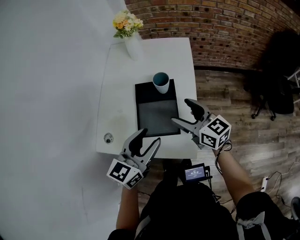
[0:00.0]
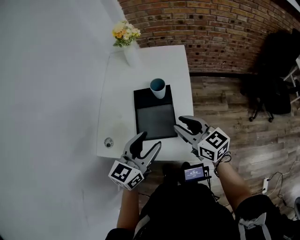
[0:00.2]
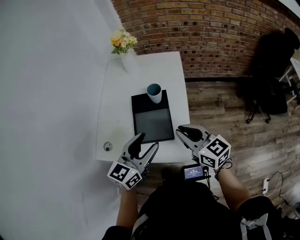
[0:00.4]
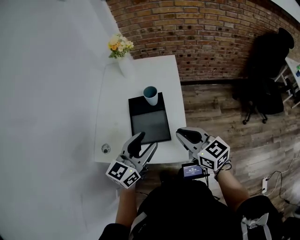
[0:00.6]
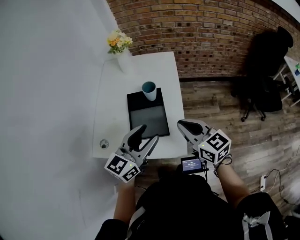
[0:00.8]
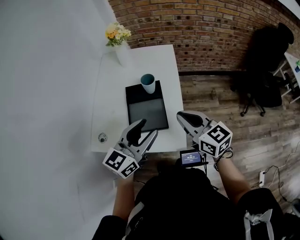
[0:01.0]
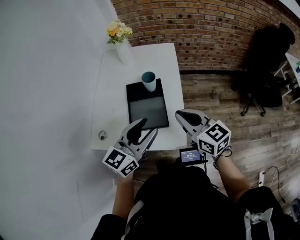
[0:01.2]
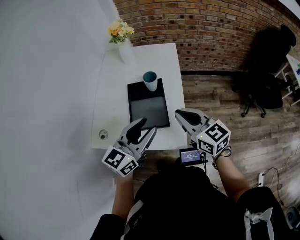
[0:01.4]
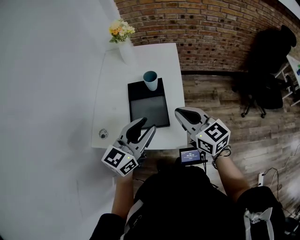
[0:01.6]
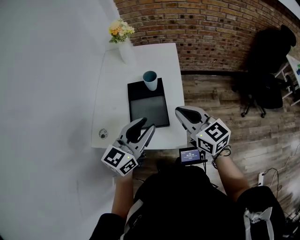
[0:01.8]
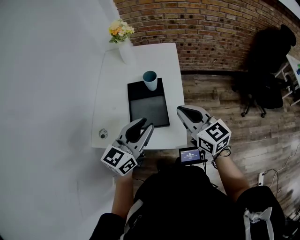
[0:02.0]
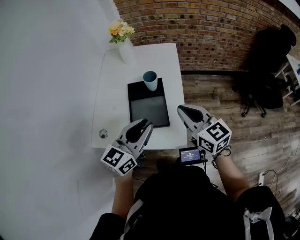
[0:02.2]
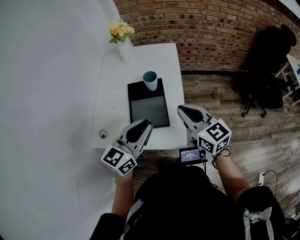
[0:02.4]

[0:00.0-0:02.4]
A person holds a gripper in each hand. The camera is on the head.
0:00.0 to 0:01.2: The left gripper shifts by roughly 5 cm. Meanwhile the right gripper heads backward and upward, covering about 10 cm, and closes its fingers.
0:01.2 to 0:02.4: The left gripper closes.

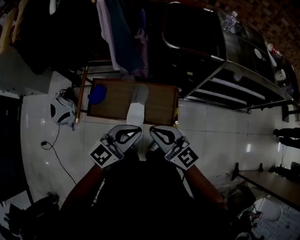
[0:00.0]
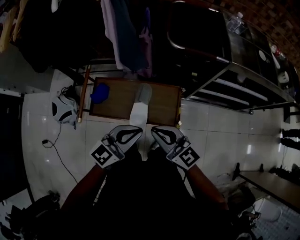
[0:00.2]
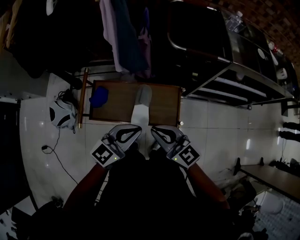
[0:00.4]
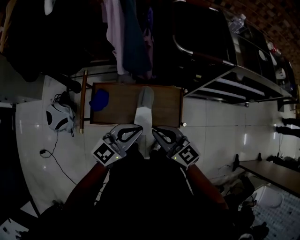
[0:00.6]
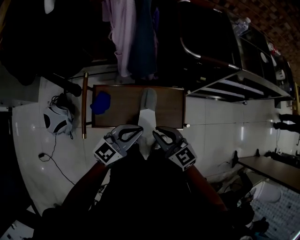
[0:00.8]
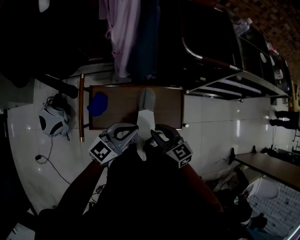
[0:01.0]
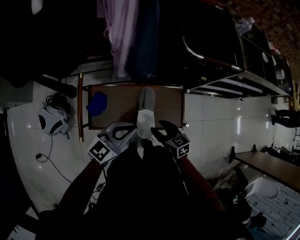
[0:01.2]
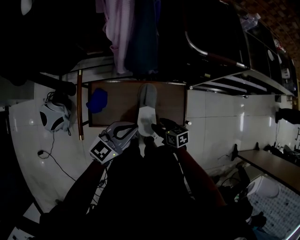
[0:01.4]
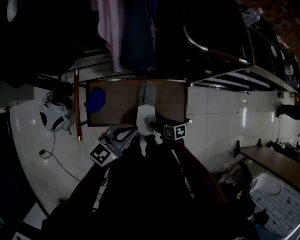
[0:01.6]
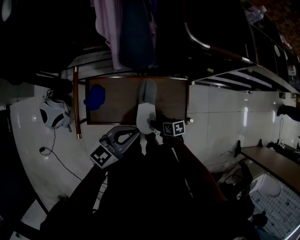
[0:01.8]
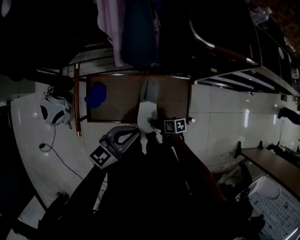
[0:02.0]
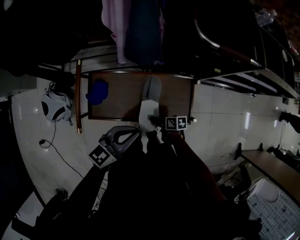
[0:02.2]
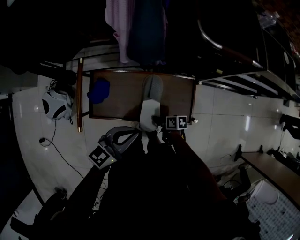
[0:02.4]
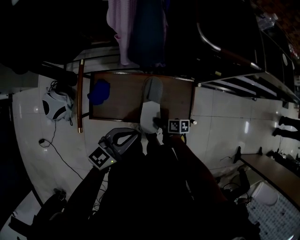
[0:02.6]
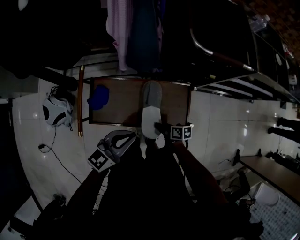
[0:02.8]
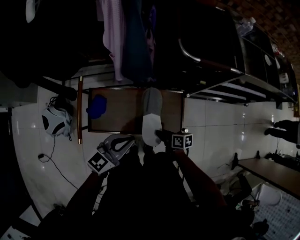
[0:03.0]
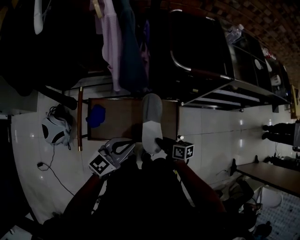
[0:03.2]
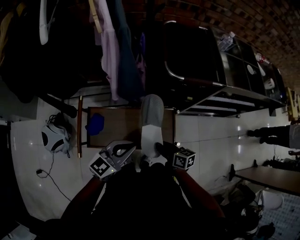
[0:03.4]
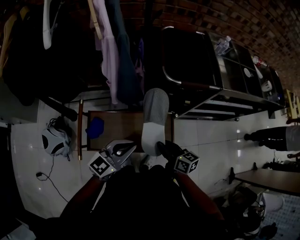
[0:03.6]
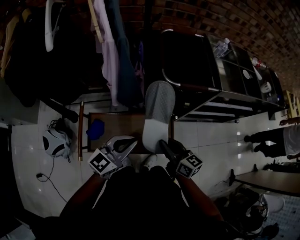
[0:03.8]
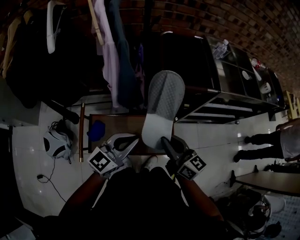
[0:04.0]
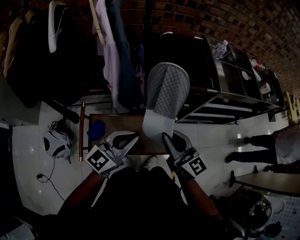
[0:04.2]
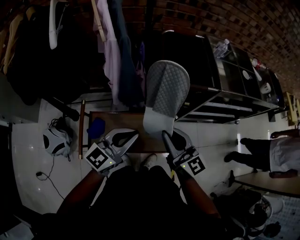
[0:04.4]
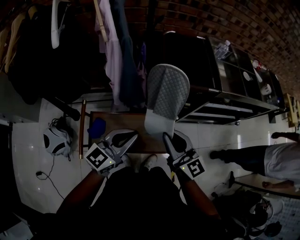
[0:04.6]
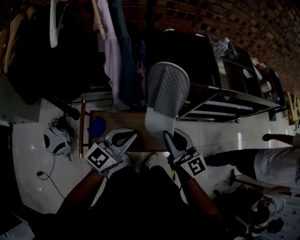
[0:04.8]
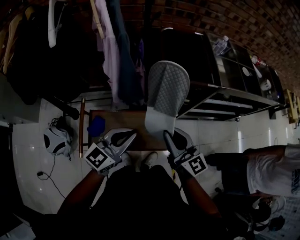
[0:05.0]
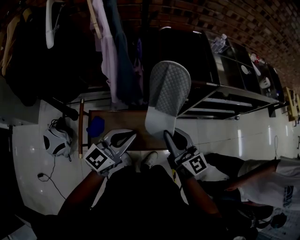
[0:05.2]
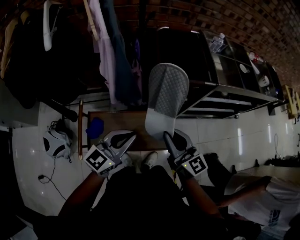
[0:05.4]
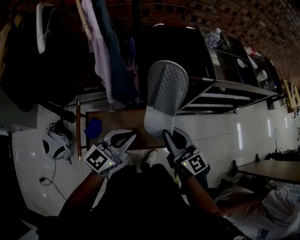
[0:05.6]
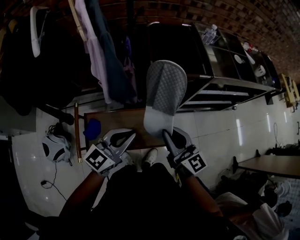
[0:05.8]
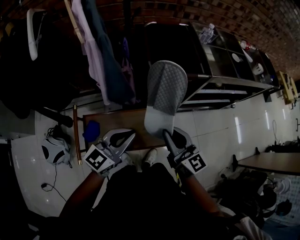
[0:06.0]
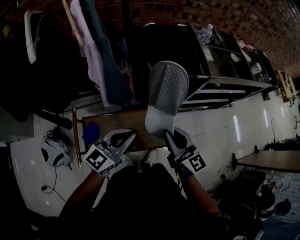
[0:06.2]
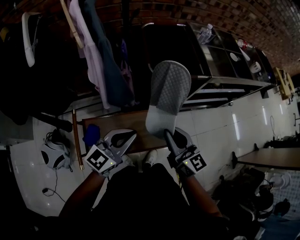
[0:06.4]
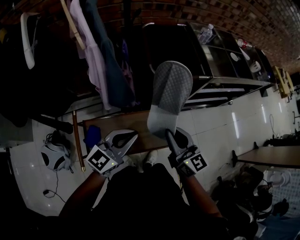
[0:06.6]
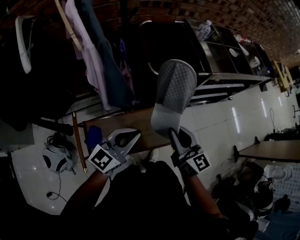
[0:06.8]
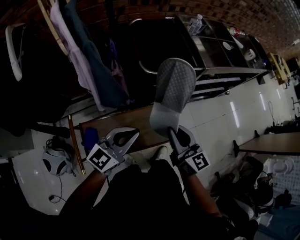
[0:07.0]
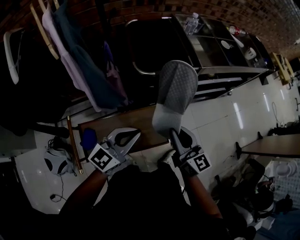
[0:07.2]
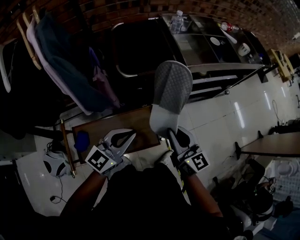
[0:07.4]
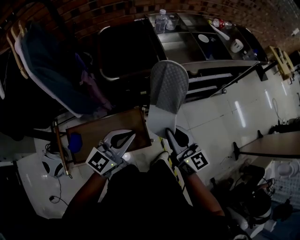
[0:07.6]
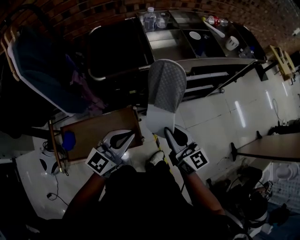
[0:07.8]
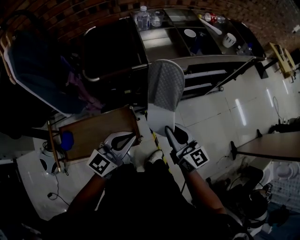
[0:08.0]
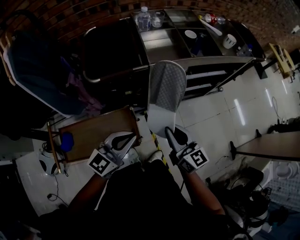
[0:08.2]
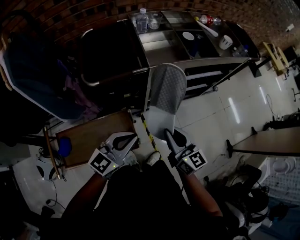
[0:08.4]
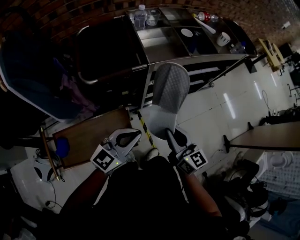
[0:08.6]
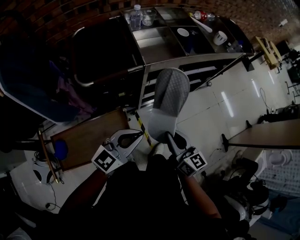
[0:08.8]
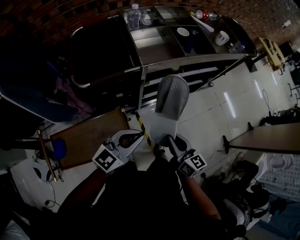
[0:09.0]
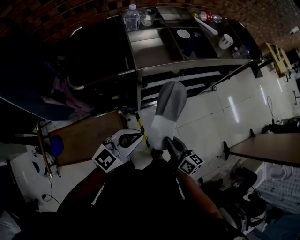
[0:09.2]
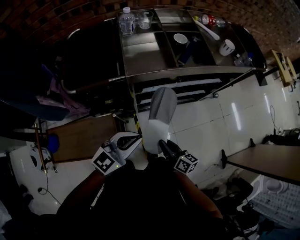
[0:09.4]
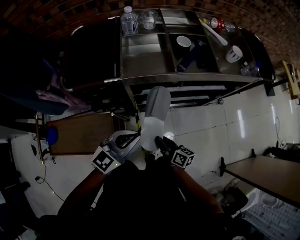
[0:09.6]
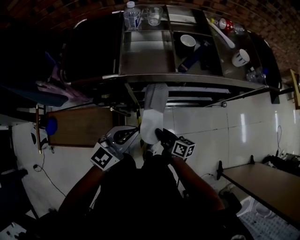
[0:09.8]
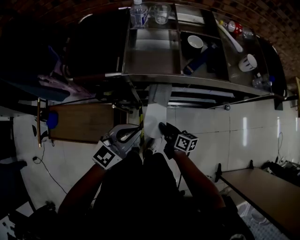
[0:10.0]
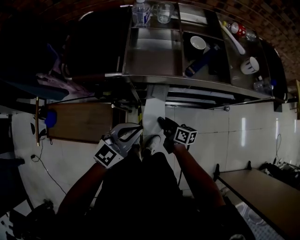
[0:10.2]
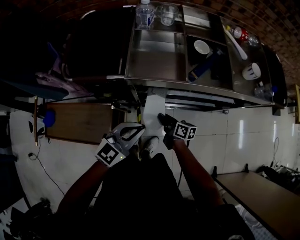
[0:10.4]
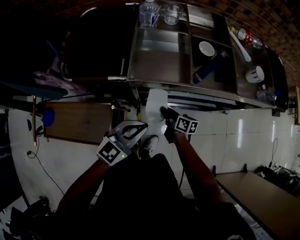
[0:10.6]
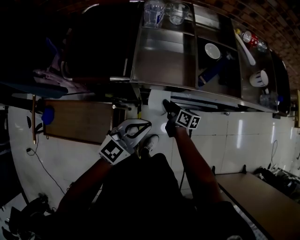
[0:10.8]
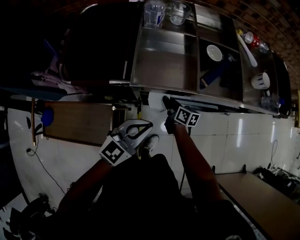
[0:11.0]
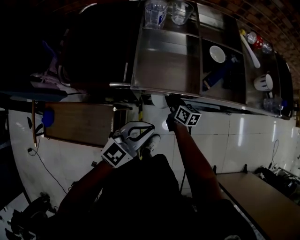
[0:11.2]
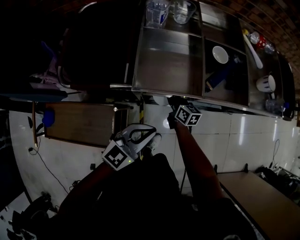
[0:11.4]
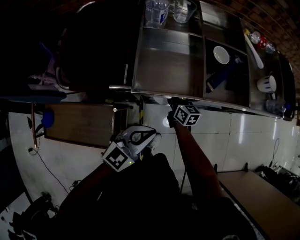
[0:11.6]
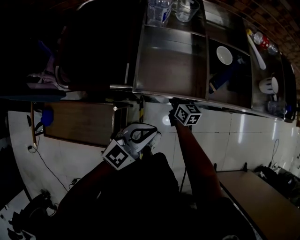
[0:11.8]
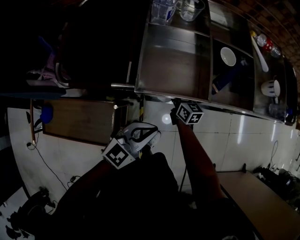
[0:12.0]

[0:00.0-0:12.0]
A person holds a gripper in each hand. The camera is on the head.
0:00.0 to 0:01.6: The right gripper moves downward, some 35 cm, points its fingers roughly 40 degrees further downward, and opens up, while the left gripper shifts approximately 20 cm to the left, downward and forward.
0:01.6 to 0:03.0: The right gripper shifts by about 5 cm, and closes up.
0:03.0 to 0:04.4: The left gripper moves upward and forward, some 15 cm. The right gripper travels upward by roughly 40 cm, and tips its fingers upward by about 30 degrees.
0:04.4 to 0:06.0: The grippers make only small movements.
0:06.0 to 0:07.6: The grippers both shift to the right by approximately 20 cm.
0:07.6 to 0:09.0: The left gripper travels to the right and forward by about 15 cm. Meanwhile the right gripper heads to the right and downward, covering about 15 cm.
0:09.0 to 0:10.4: The right gripper changes place by roughly 30 cm, and swivels about 40 degrees; the left gripper changes place by roughly 20 cm, and turns by some 20 degrees.
0:10.4 to 0:12.0: The right gripper shifts approximately 15 cm forward, and rotates roughly 30 degrees. The left gripper shifts about 5 cm forward.

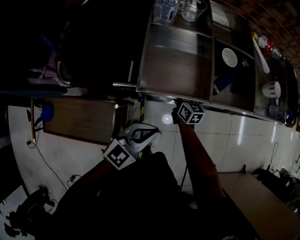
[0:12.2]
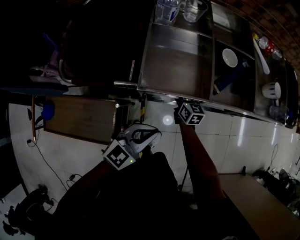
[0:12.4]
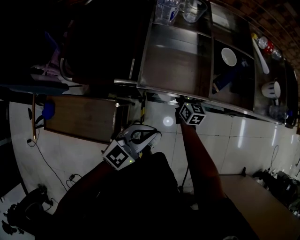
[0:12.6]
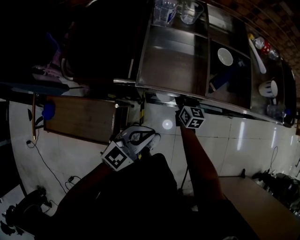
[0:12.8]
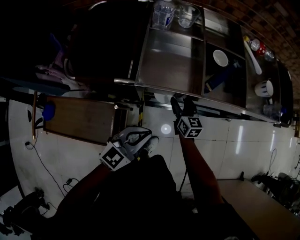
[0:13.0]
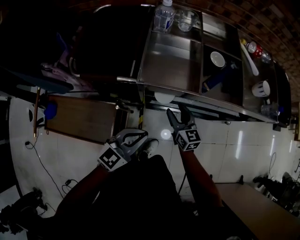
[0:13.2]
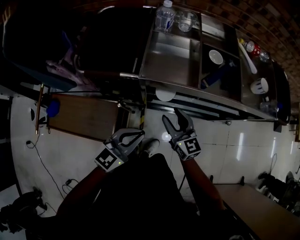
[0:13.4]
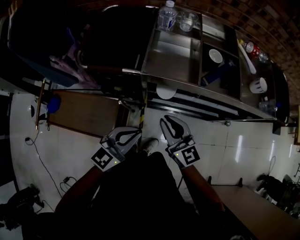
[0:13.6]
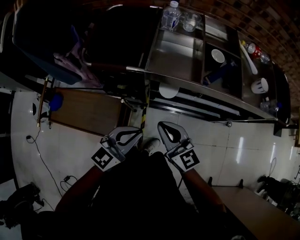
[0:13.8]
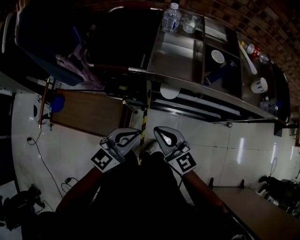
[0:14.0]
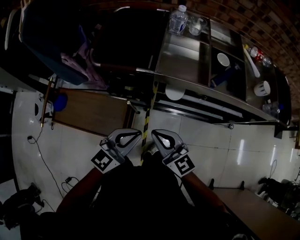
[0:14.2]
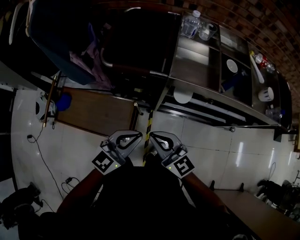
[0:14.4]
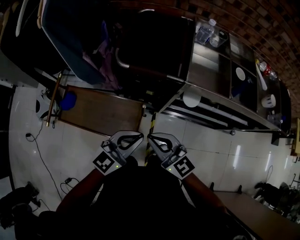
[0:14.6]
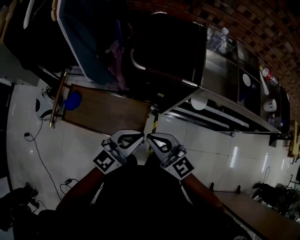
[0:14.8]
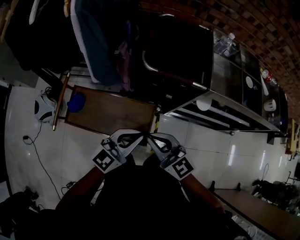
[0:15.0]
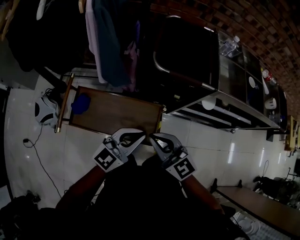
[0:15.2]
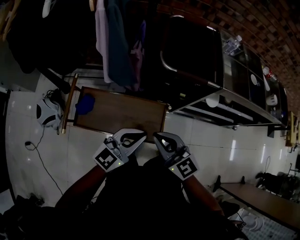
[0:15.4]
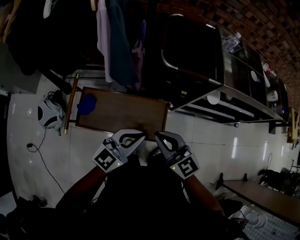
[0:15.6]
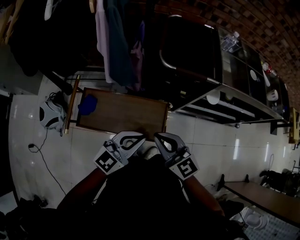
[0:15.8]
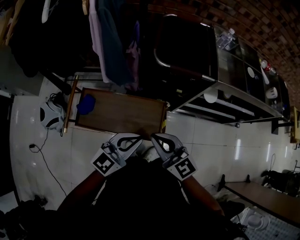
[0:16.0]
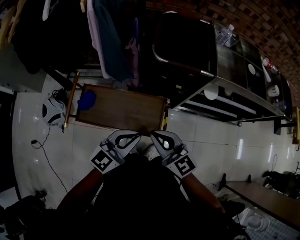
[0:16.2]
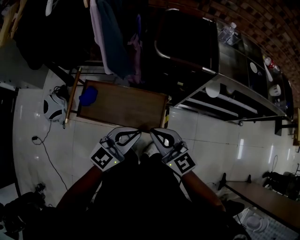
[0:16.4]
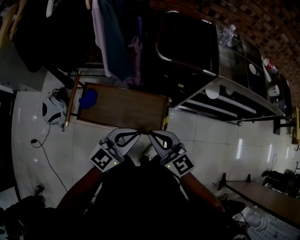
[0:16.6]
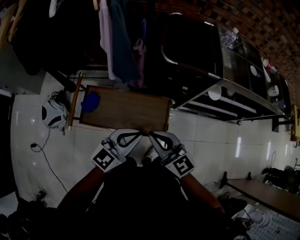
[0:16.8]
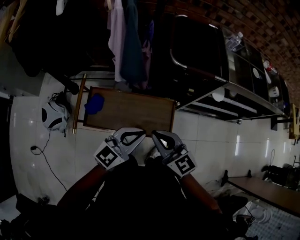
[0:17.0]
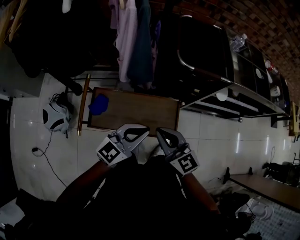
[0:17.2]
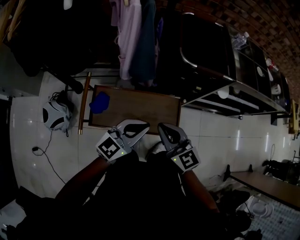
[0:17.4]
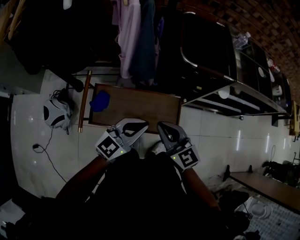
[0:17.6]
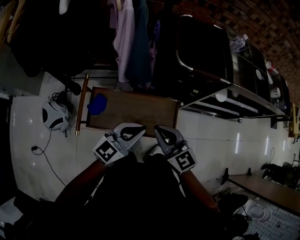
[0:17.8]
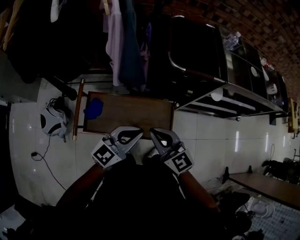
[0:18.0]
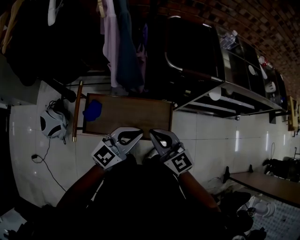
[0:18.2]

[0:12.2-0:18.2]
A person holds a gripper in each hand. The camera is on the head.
0:12.2 to 0:13.8: The left gripper heads backward and upward, covering approximately 10 cm, while the right gripper travels backward and upward by about 35 cm, turns by some 40 degrees, and opens and closes again.
0:13.8 to 0:15.2: The grippers both shift to the left by approximately 35 cm.
0:15.2 to 0:16.6: The two grippers go approximately 5 cm backward.
0:16.6 to 0:18.2: The two grippers go about 10 cm to the left.

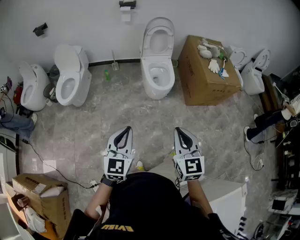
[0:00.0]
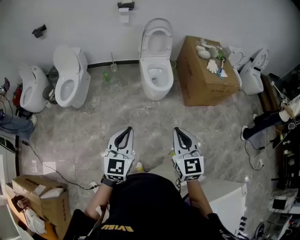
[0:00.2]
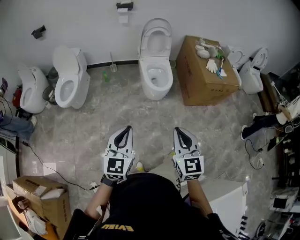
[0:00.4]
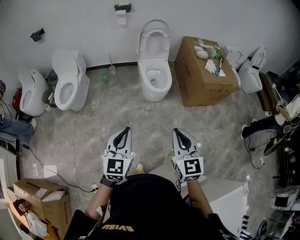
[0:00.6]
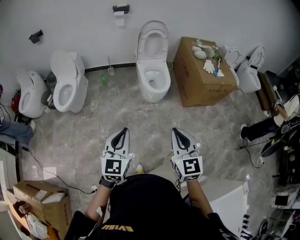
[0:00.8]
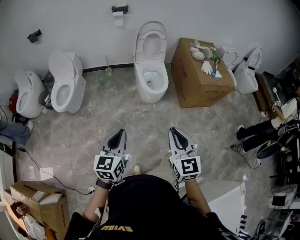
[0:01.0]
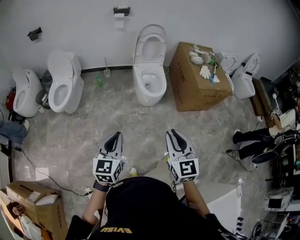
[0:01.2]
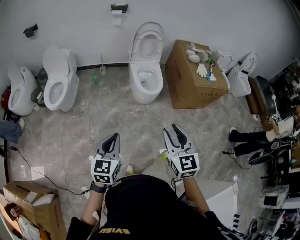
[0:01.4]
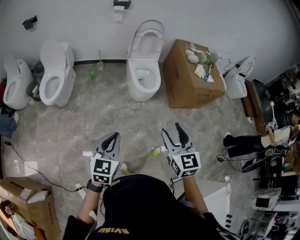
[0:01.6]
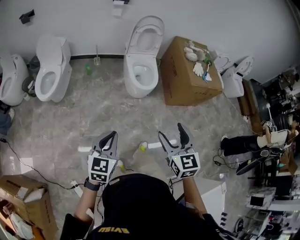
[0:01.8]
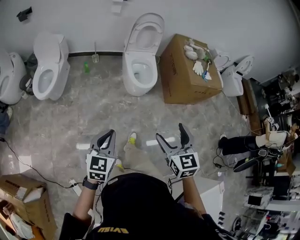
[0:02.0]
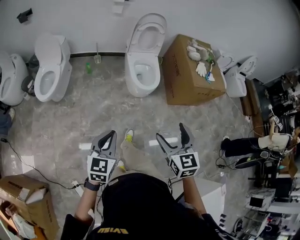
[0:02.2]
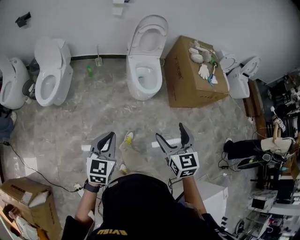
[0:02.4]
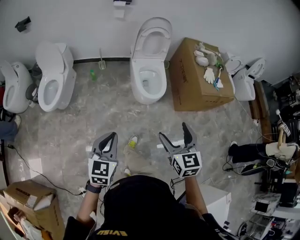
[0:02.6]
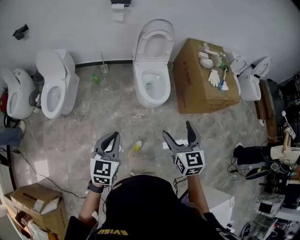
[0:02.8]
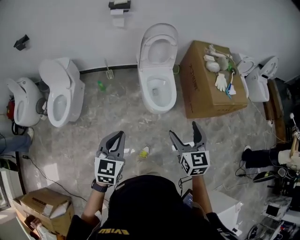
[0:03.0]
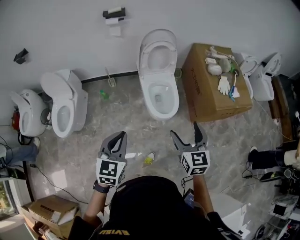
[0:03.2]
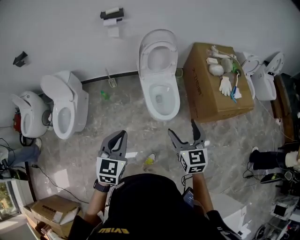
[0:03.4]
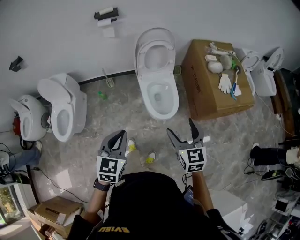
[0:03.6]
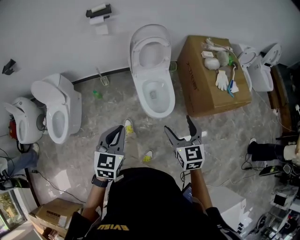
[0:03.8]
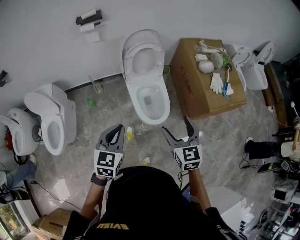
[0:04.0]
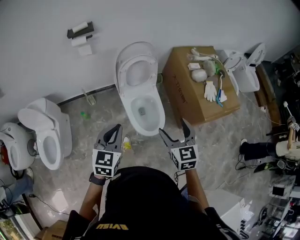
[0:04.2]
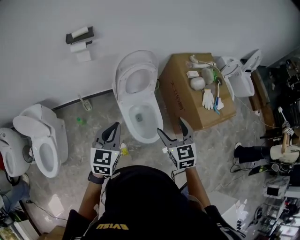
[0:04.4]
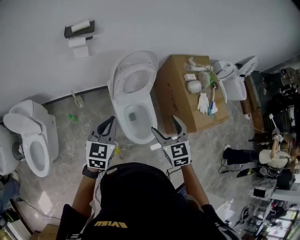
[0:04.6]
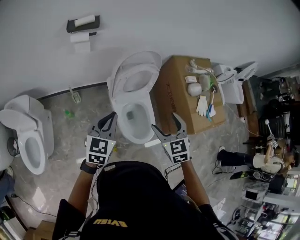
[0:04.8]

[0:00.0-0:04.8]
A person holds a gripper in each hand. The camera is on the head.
0:00.0 to 0:01.6: The right gripper opens.
0:01.6 to 0:03.2: The two grippers go roughly 35 cm forward. The right gripper opens up.
0:03.2 to 0:04.8: The grippers both shift forward by approximately 40 cm. The right gripper turns by about 20 degrees.
